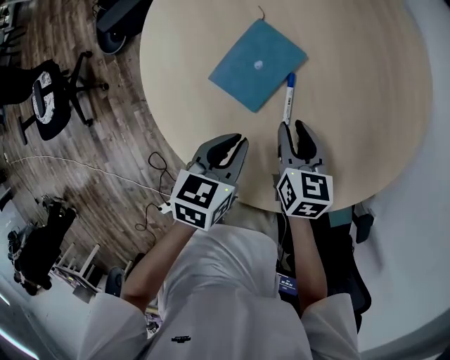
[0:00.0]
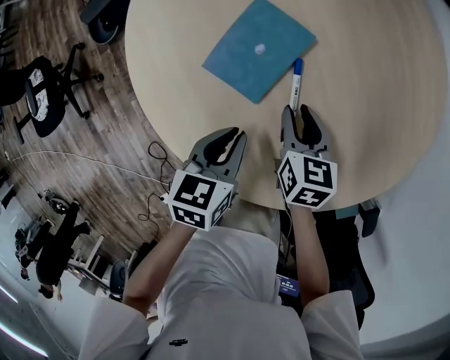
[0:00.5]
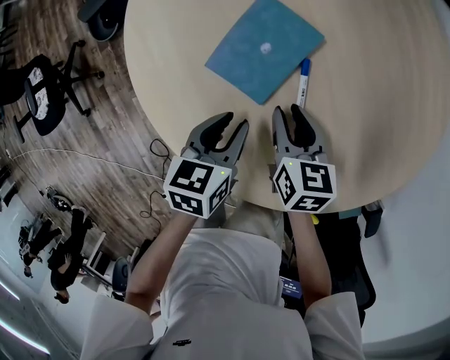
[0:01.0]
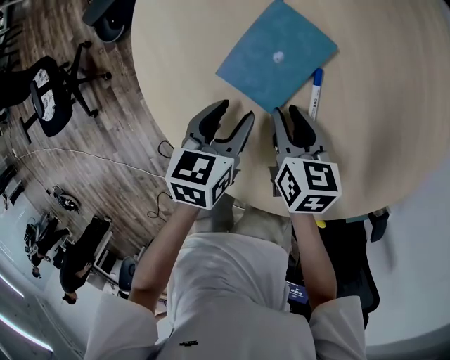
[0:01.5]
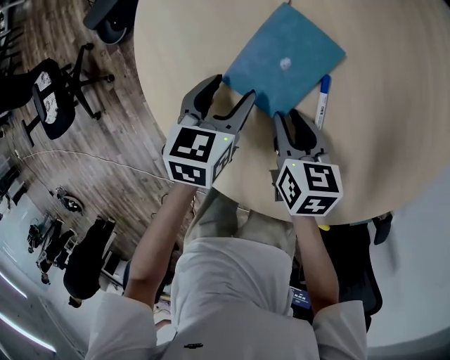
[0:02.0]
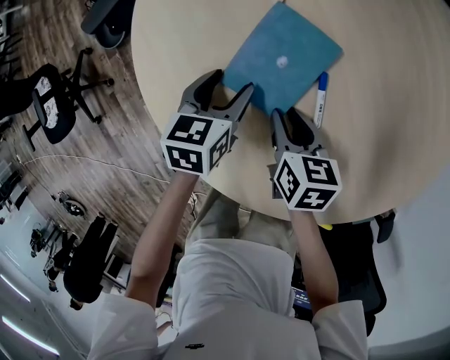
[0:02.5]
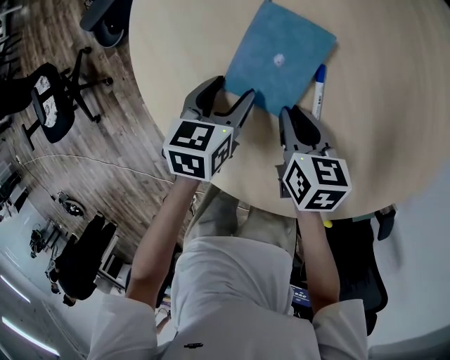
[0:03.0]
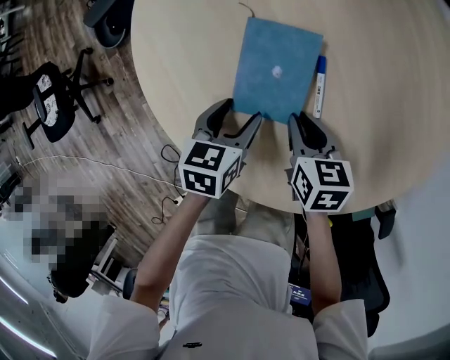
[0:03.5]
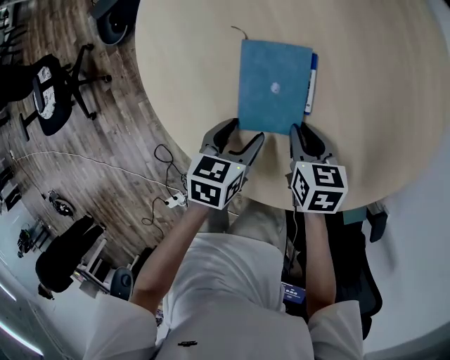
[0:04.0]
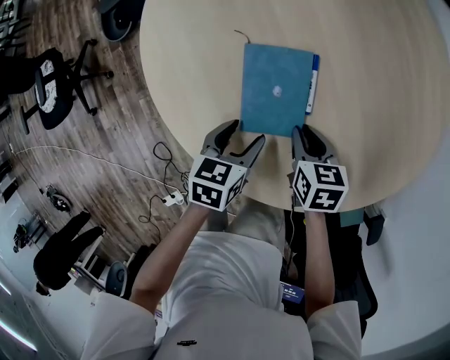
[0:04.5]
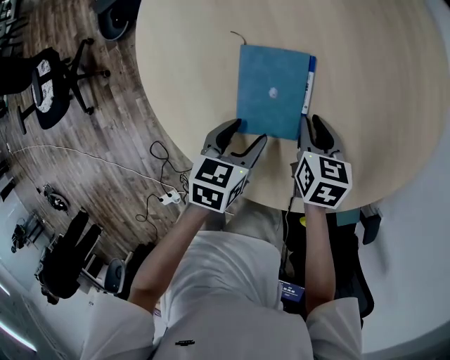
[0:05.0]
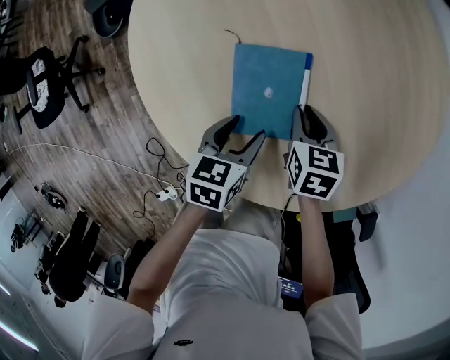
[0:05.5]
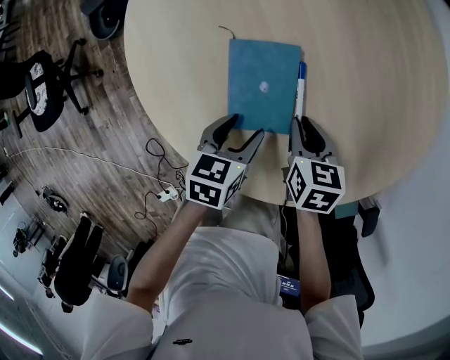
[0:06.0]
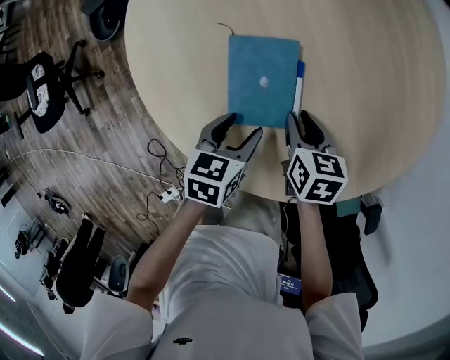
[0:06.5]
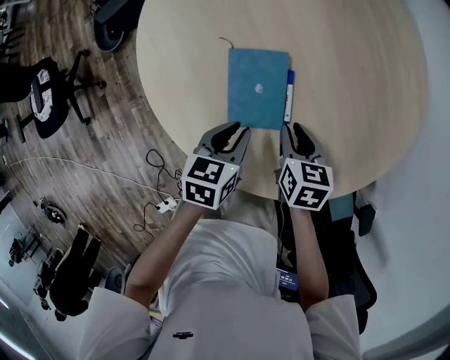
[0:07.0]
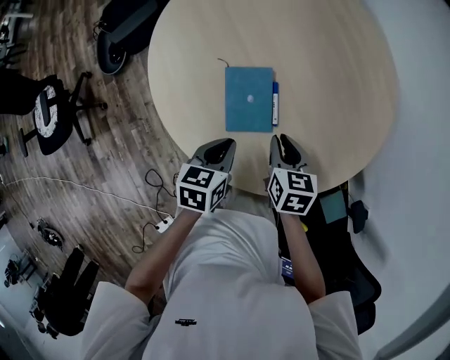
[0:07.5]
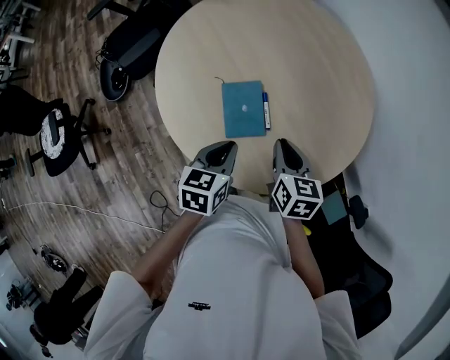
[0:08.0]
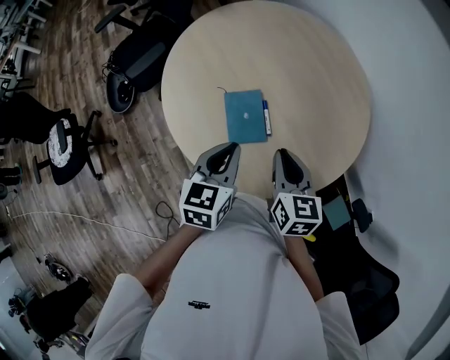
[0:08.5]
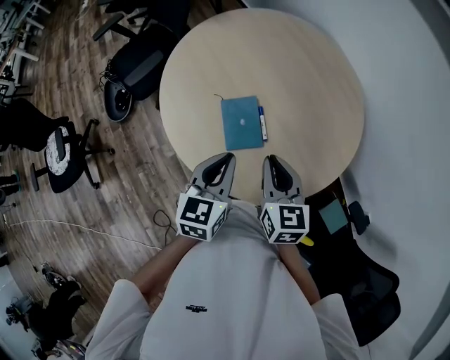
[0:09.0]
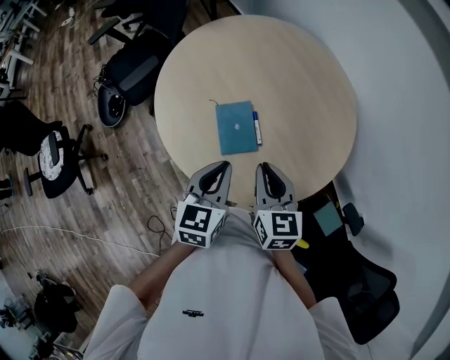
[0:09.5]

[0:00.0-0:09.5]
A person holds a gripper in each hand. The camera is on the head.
0:00.0 to 0:02.0: The left gripper shifts about 20 cm forward, downward and to the left, and opens its fingers, while the right gripper travels downward and to the left by approximately 10 cm.
0:02.0 to 0:04.0: The left gripper goes some 15 cm backward and to the right. Meanwhile the right gripper travels backward and to the right by about 10 cm.
0:04.0 to 0:05.5: The right gripper moves some 5 cm.
0:05.5 to 0:07.5: The right gripper shifts approximately 20 cm upward and backward. The left gripper shifts some 15 cm upward, and closes up.
0:07.5 to 0:09.5: The right gripper shifts some 20 cm upward and backward, and rotates about 20 degrees. Meanwhile the left gripper shifts about 20 cm upward, and rotates approximately 30 degrees.

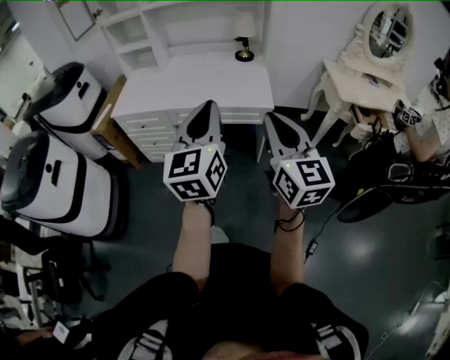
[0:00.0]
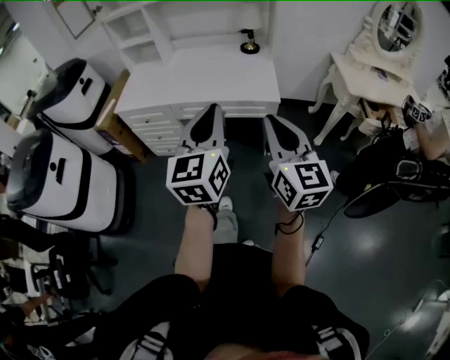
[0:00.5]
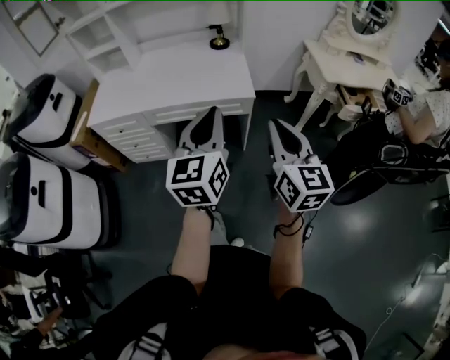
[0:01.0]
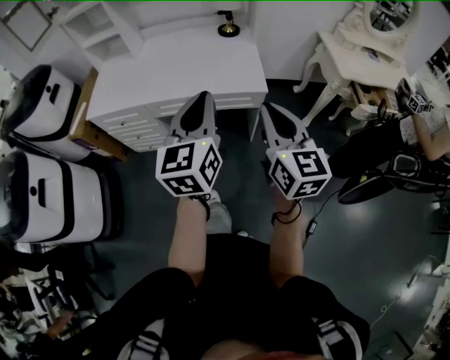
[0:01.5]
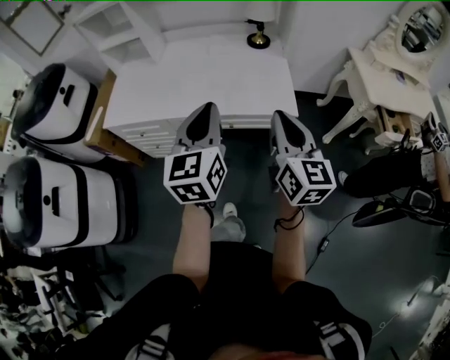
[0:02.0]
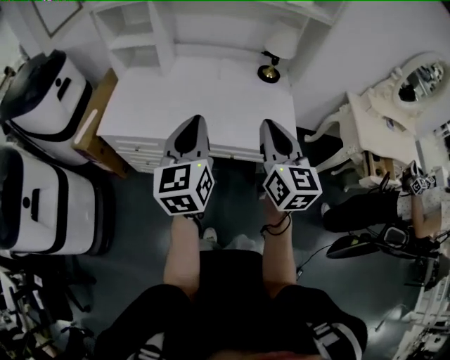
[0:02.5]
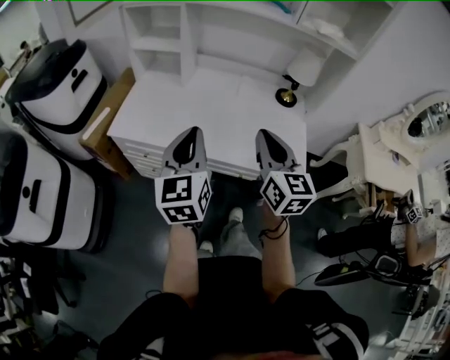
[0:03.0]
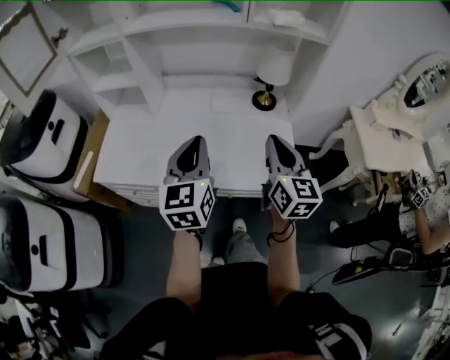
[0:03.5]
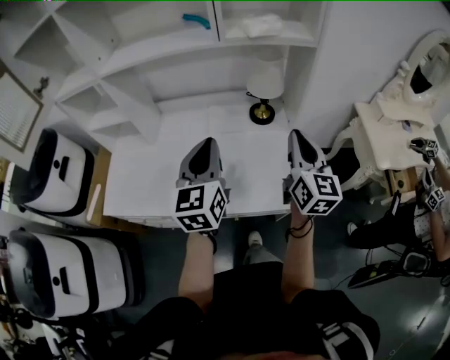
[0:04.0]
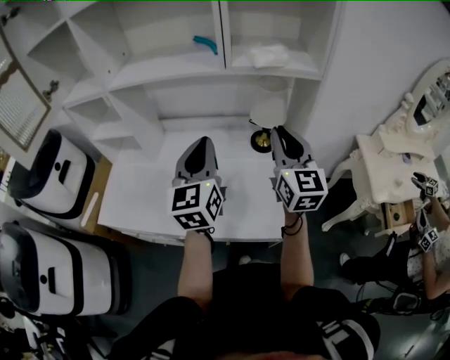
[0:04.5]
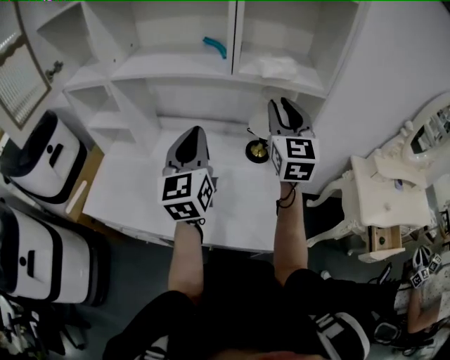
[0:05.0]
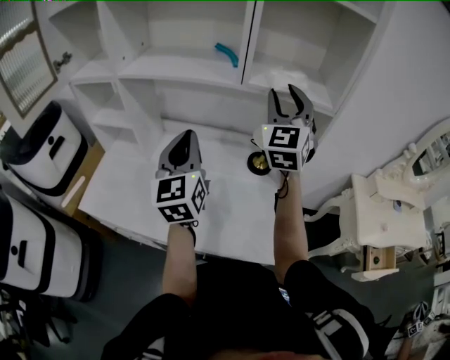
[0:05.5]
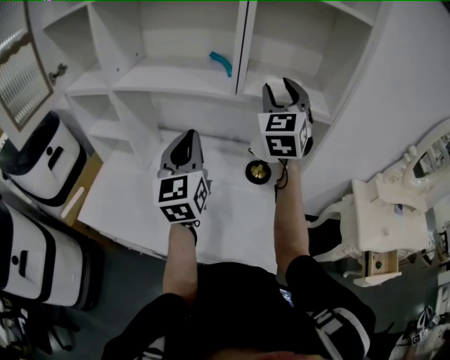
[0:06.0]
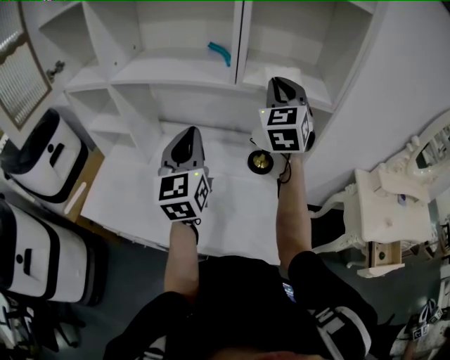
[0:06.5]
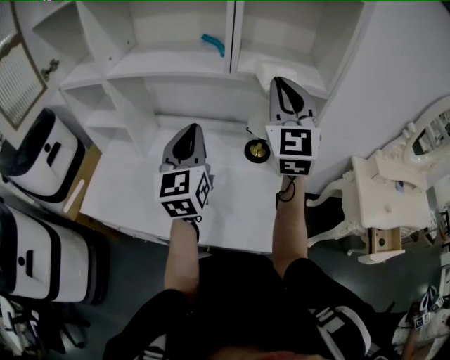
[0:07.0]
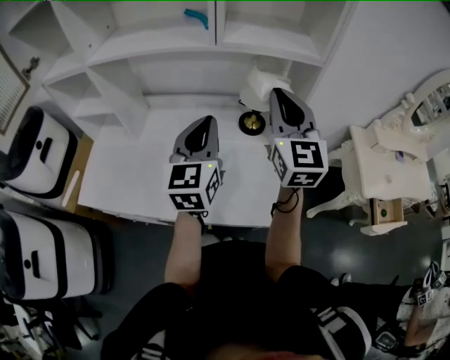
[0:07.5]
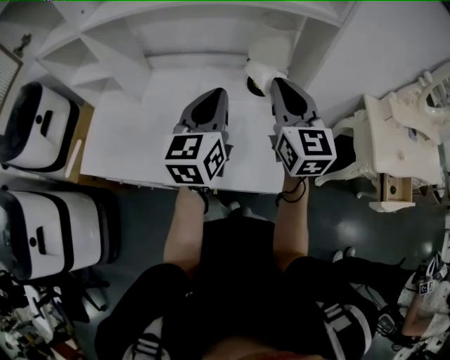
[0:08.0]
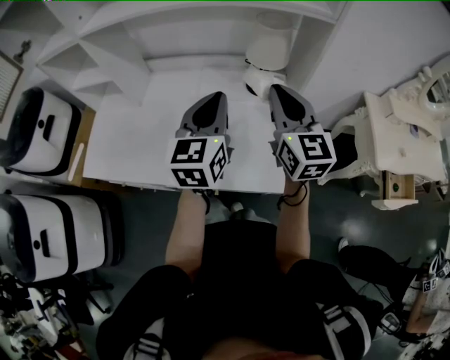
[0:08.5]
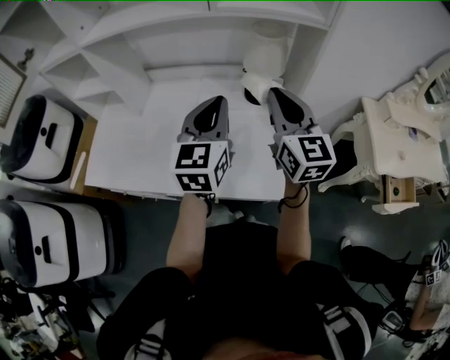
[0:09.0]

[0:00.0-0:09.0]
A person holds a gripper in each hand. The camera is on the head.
0:00.0 to 0:02.0: The grippers both shift forward by roughly 25 cm.
0:02.0 to 0:04.5: Both grippers travel together forward, approximately 40 cm.
0:04.5 to 0:07.0: The right gripper heads upward and forward, covering roughly 15 cm, swivels some 30 degrees, and opens, then closes again. The left gripper is displaced forward by roughly 5 cm.
0:07.0 to 0:09.0: The right gripper moves downward and backward, some 20 cm, and changes its angle by approximately 30 degrees. Meanwhile the left gripper goes approximately 10 cm to the right and downward.

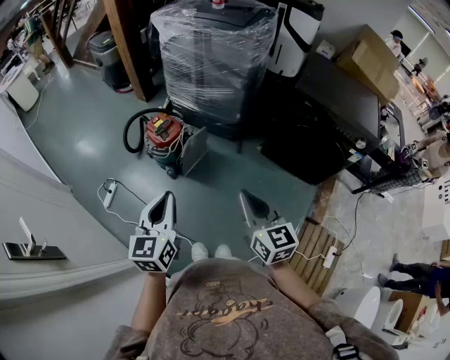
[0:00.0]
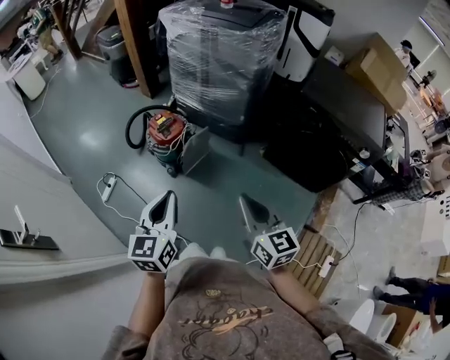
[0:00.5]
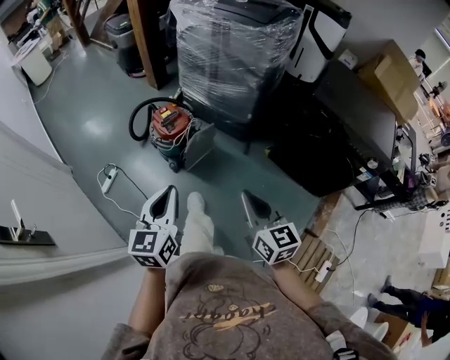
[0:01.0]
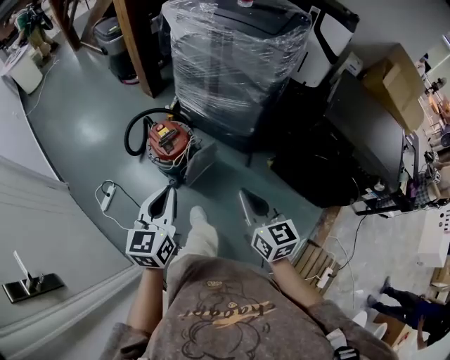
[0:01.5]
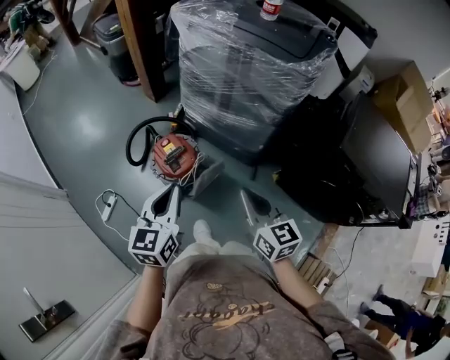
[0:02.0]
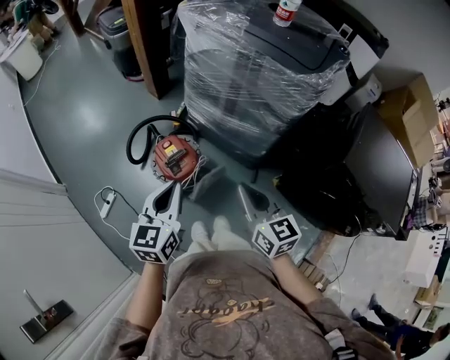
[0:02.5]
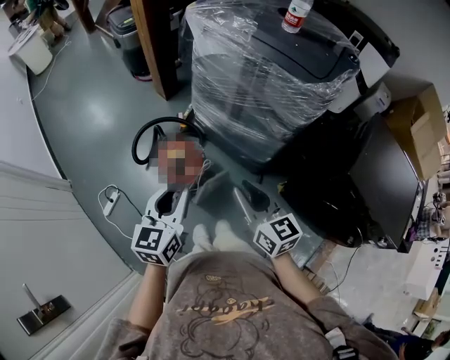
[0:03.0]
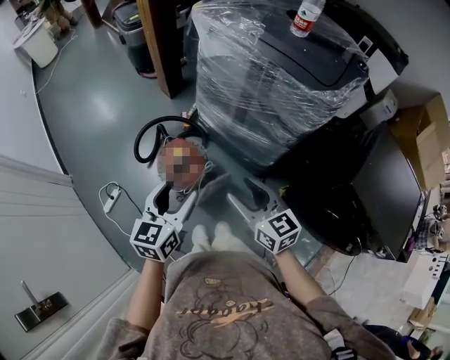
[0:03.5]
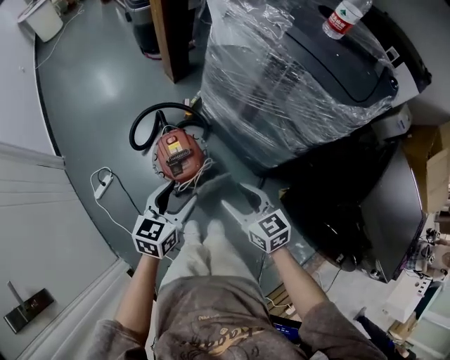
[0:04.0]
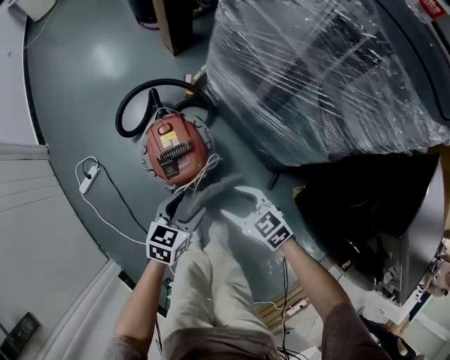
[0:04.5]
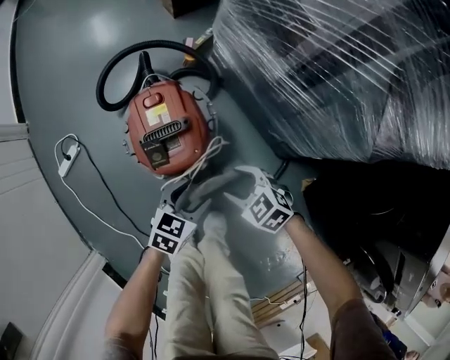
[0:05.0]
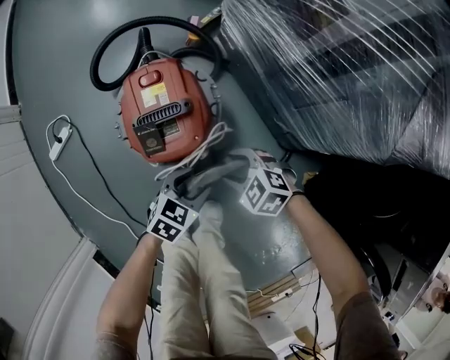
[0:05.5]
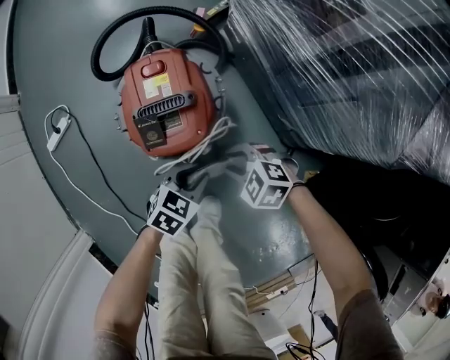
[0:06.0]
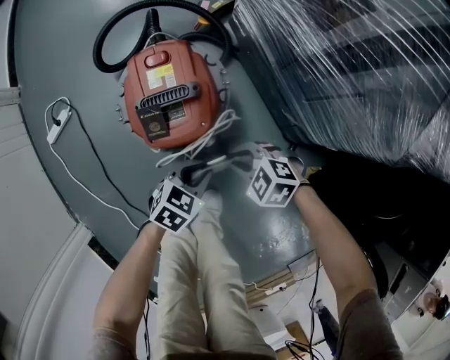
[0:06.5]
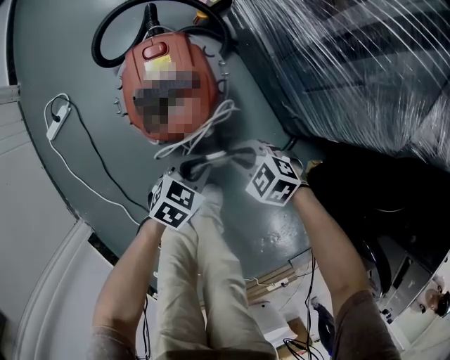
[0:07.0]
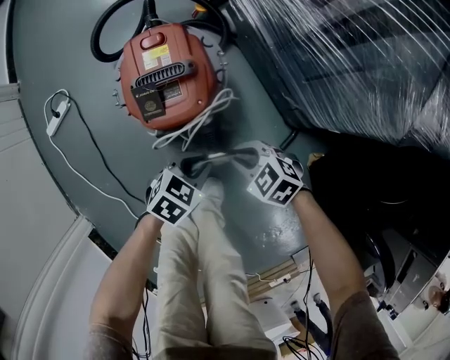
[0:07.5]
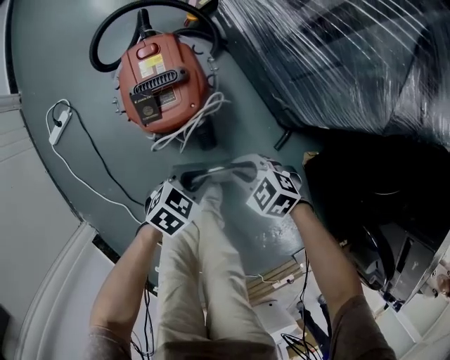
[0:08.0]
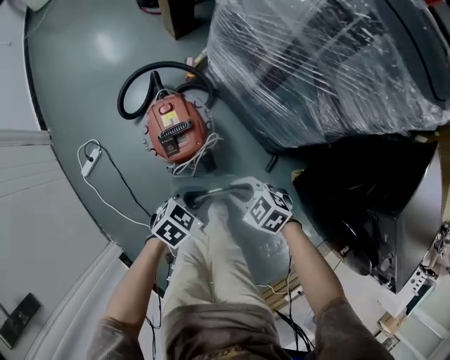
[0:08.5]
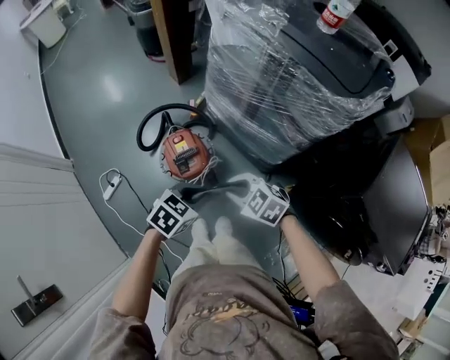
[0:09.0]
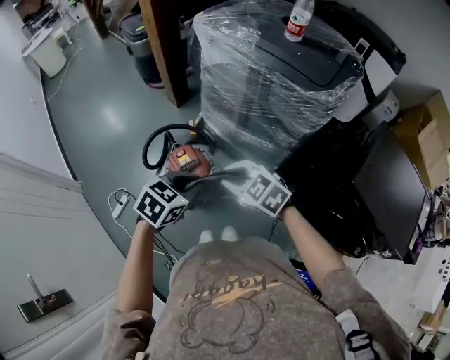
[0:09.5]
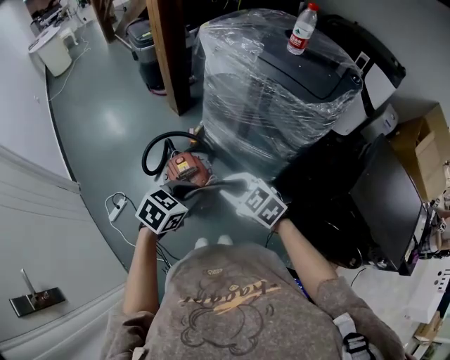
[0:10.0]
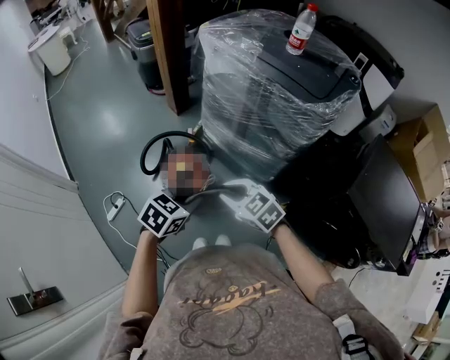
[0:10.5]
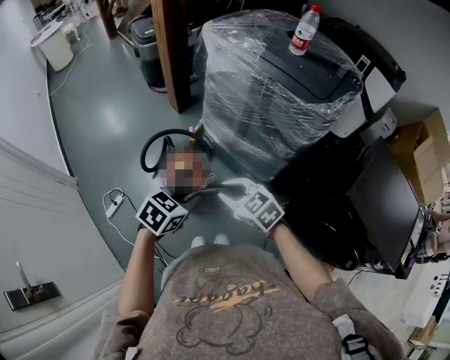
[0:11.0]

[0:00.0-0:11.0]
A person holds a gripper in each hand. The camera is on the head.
0:00.0 to 0:02.0: The grippers both shift forward by some 35 cm.
0:02.0 to 0:03.5: Both grippers travel together forward, some 10 cm. The right gripper opens. Meanwhile the left gripper opens.
0:03.5 to 0:05.5: Both grippers move downward, approximately 50 cm. The right gripper points its fingers roughly 40 degrees further downward. Meanwhile the left gripper swivels roughly 30 degrees.
0:05.5 to 0:07.5: The right gripper ends up roughly 5 cm from where it was, and closes its fingers. Meanwhile the left gripper closes.
0:07.5 to 0:09.0: Both grippers travel together upward, some 40 cm.
0:09.0 to 0:11.0: The grippers both shift upward by about 10 cm.
